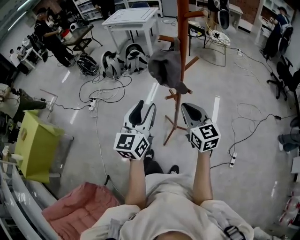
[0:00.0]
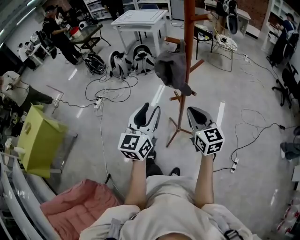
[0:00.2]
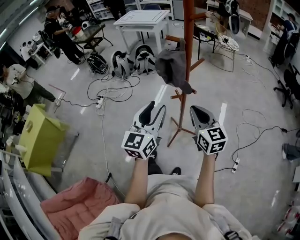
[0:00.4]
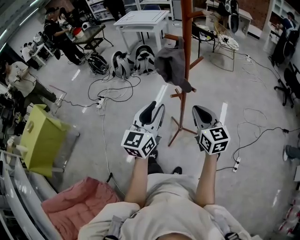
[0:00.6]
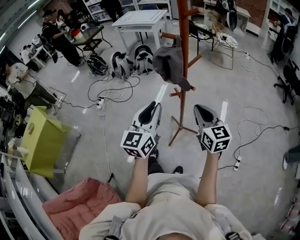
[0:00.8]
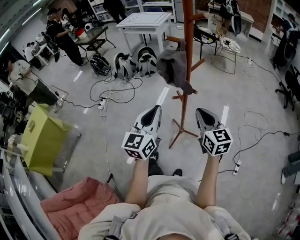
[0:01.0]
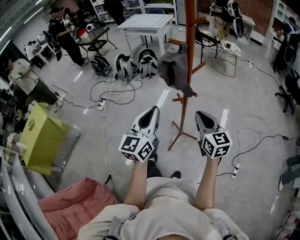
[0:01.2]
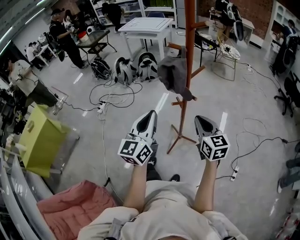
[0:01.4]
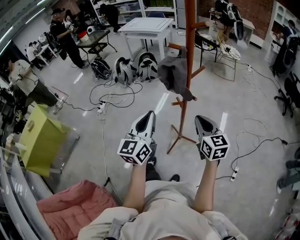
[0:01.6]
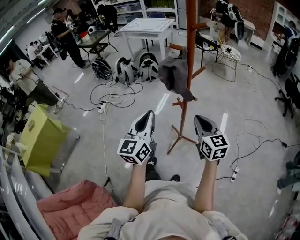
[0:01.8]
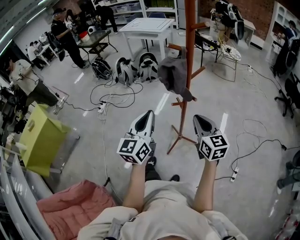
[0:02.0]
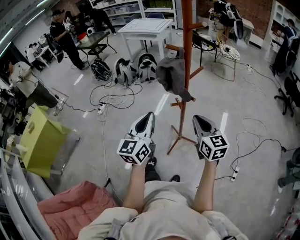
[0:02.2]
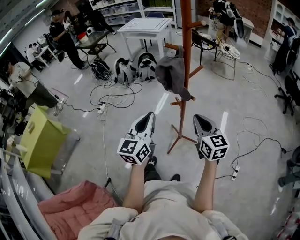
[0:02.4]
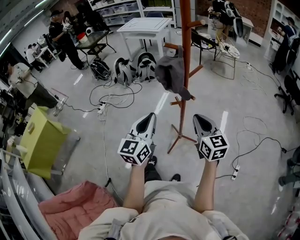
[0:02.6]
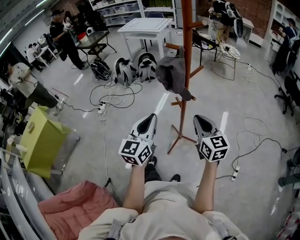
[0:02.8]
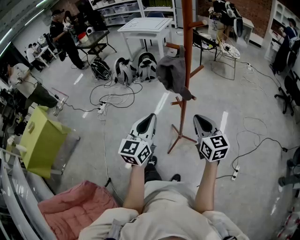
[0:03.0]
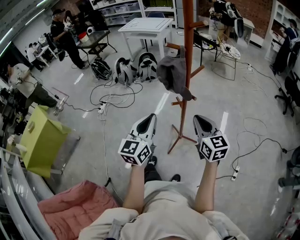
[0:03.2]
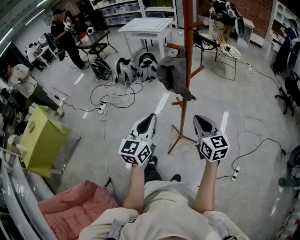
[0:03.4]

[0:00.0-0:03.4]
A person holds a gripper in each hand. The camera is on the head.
0:00.0 to 0:01.6: The left gripper closes its fingers.
0:01.6 to 0:03.4: The grippers move only a little.

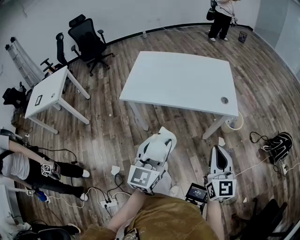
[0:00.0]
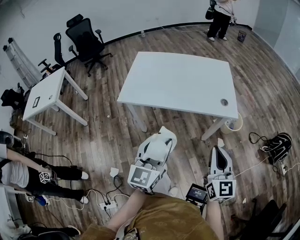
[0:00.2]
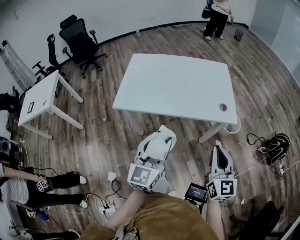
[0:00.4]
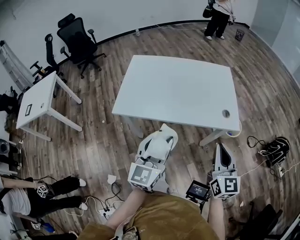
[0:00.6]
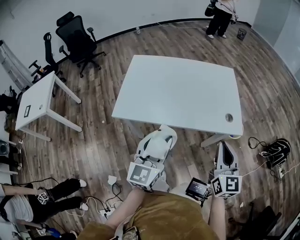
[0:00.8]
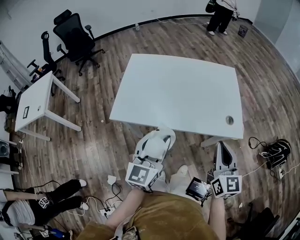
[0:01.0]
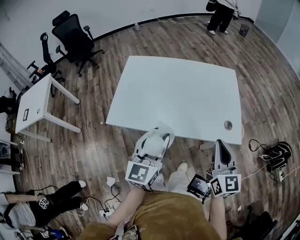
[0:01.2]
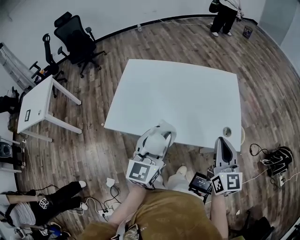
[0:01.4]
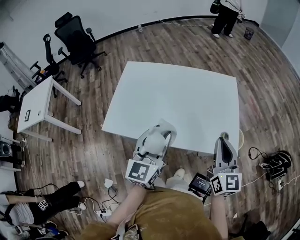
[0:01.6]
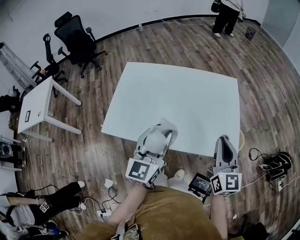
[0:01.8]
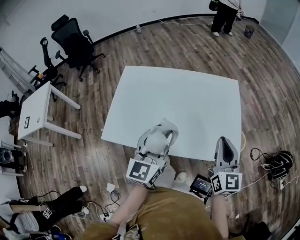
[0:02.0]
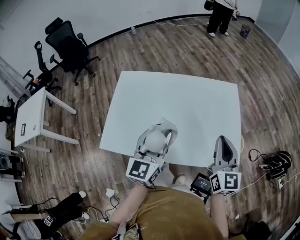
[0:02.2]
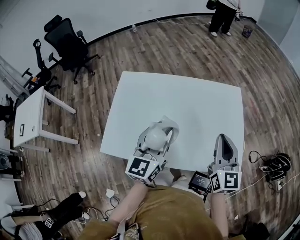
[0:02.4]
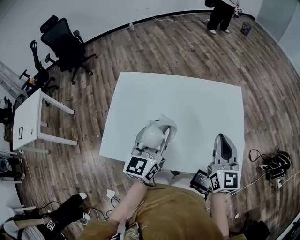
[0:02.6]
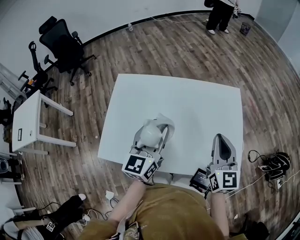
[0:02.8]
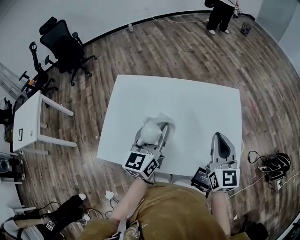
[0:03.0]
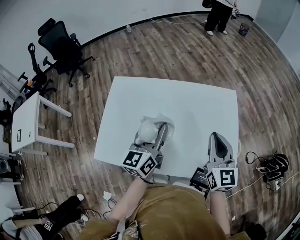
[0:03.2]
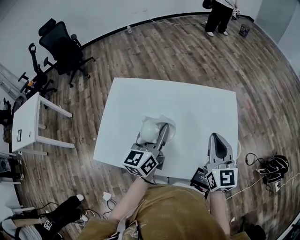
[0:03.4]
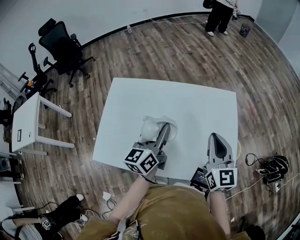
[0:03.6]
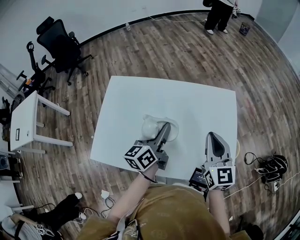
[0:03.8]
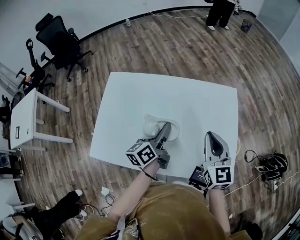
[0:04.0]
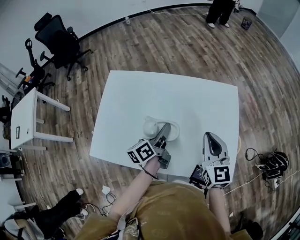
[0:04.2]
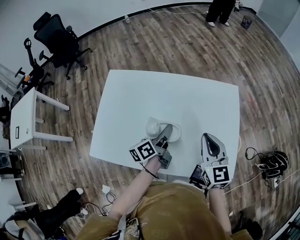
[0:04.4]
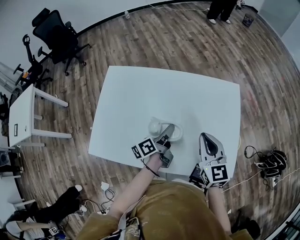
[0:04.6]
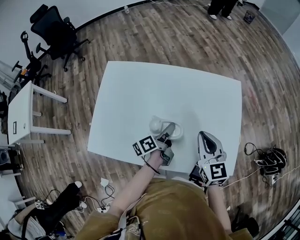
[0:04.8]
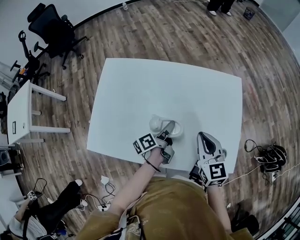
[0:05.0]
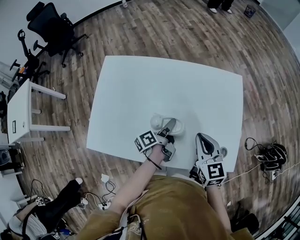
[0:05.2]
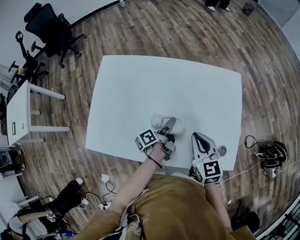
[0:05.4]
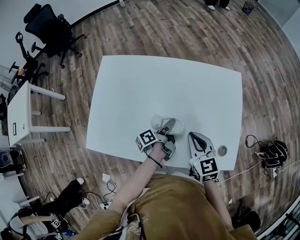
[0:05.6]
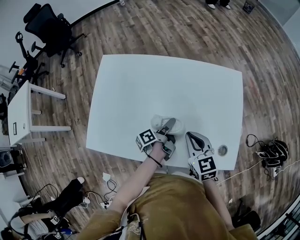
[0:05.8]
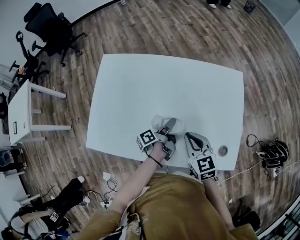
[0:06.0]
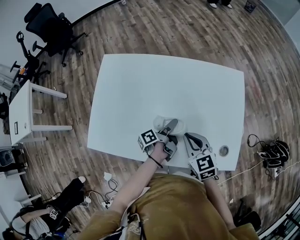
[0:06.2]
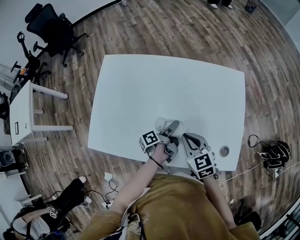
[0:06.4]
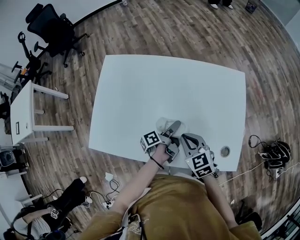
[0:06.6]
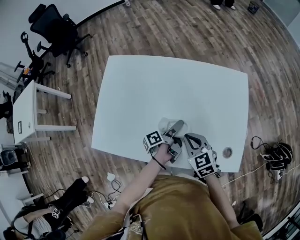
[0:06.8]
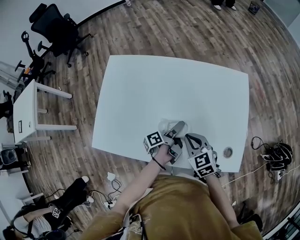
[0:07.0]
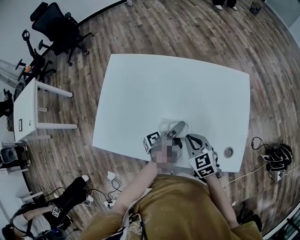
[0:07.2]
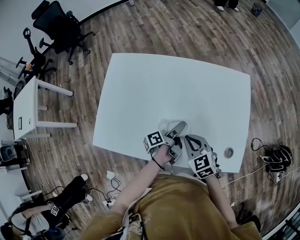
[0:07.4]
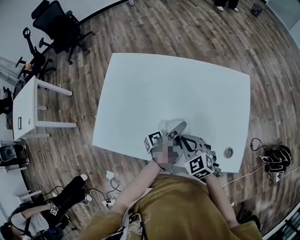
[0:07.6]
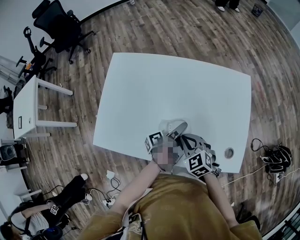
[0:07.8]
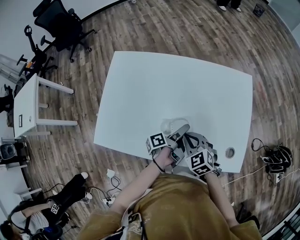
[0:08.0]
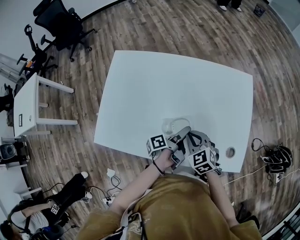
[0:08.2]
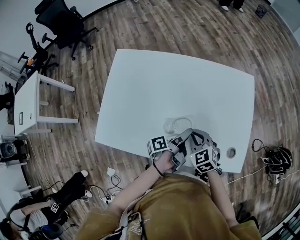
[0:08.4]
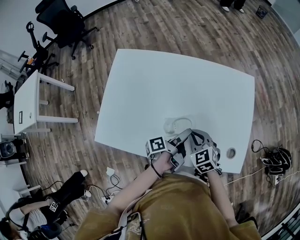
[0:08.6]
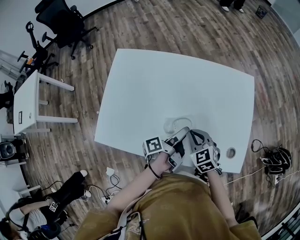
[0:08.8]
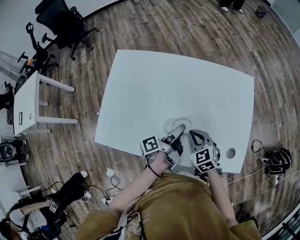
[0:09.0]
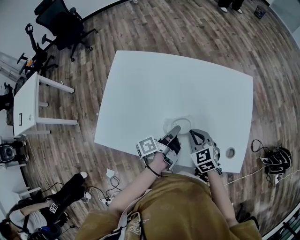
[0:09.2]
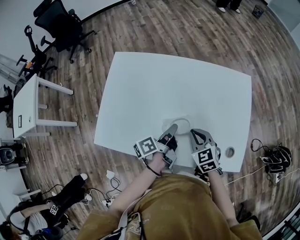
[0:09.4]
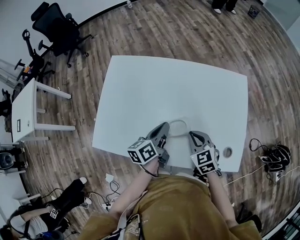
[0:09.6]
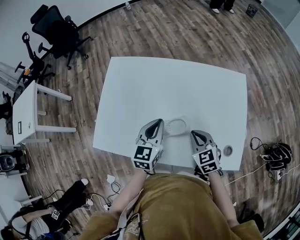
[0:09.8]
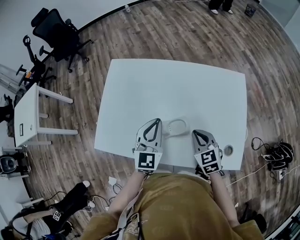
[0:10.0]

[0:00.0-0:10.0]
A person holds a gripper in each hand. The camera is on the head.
0:00.0 to 0:01.4: Both grippers travel together forward, some 30 cm.
0:01.4 to 0:02.8: Both grippers travel together forward, some 20 cm.
0:02.8 to 0:04.2: The right gripper shifts by approximately 5 cm. The left gripper shifts roughly 15 cm downward, and rotates around the line of its fingers by roughly 50 degrees, counterclockwise from behind.
0:04.2 to 0:05.8: The left gripper is displaced downward by approximately 15 cm, and rotates about 30 degrees. Meanwhile the right gripper moves downward and to the left, roughly 15 cm, and rotates some 20 degrees.
0:05.8 to 0:07.2: The left gripper opens up. The right gripper travels downward by about 5 cm.
0:07.2 to 0:08.6: The left gripper shifts by approximately 5 cm.
0:08.6 to 0:10.0: The right gripper shifts by some 5 cm. The left gripper goes about 15 cm upward and to the left, rotates around the line of its fingers by some 110 degrees, clockwise from behind, and closes its fingers.

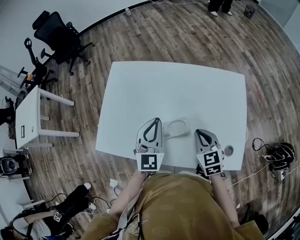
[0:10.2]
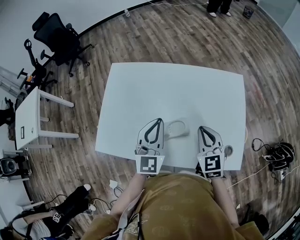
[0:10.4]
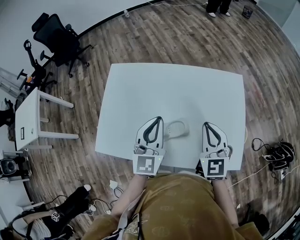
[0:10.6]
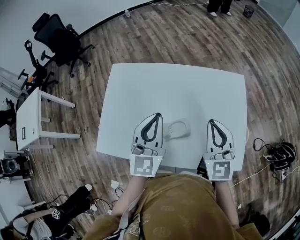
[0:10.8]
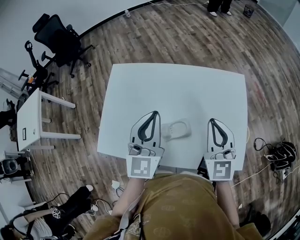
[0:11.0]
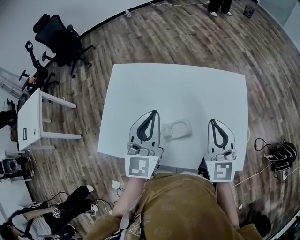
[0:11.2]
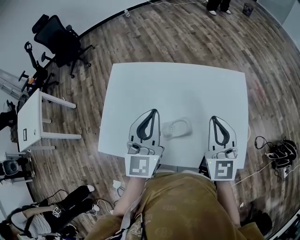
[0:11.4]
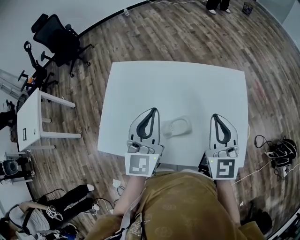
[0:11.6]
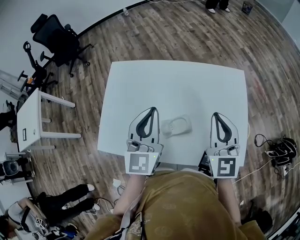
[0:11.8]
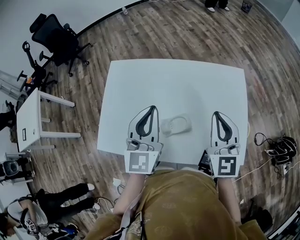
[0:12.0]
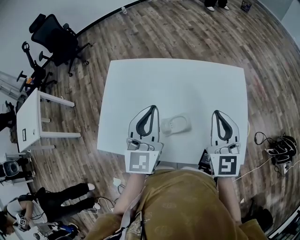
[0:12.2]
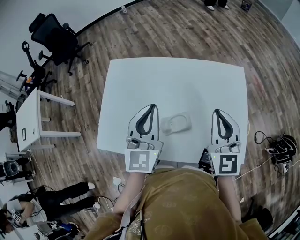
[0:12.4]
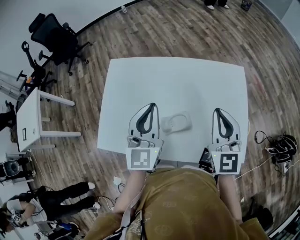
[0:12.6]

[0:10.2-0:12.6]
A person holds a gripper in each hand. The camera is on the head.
0:10.2 to 0:11.4: The left gripper is displaced upward by some 10 cm, while the right gripper travels upward by roughly 15 cm, and swivels roughly 30 degrees.
0:11.4 to 0:12.6: The grippers move only a little.

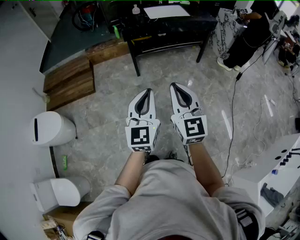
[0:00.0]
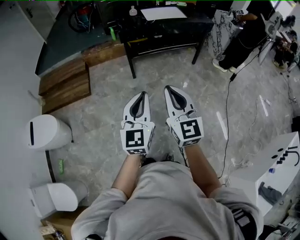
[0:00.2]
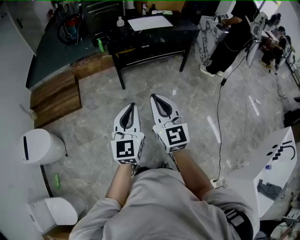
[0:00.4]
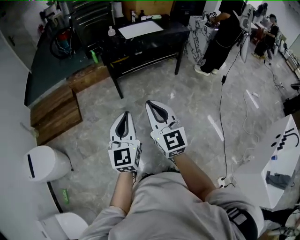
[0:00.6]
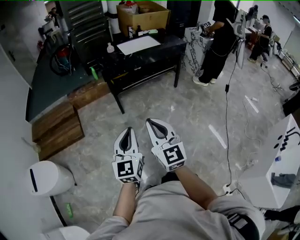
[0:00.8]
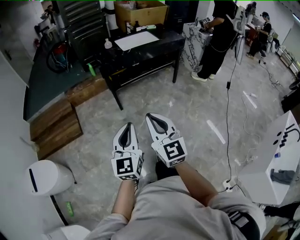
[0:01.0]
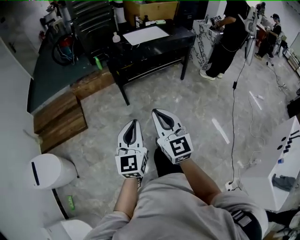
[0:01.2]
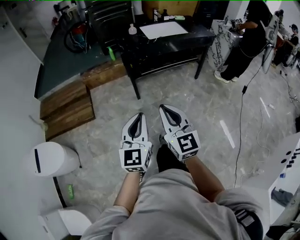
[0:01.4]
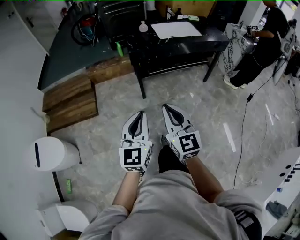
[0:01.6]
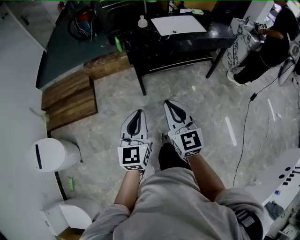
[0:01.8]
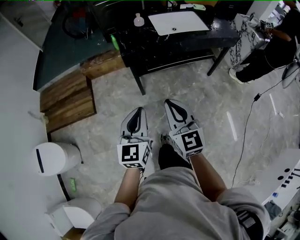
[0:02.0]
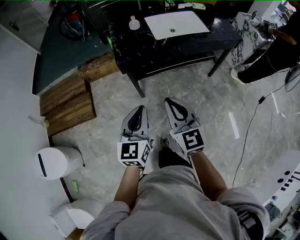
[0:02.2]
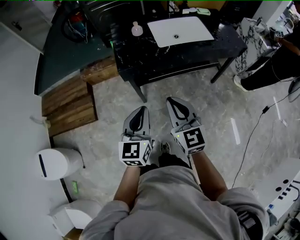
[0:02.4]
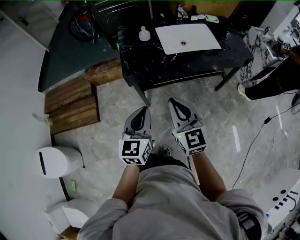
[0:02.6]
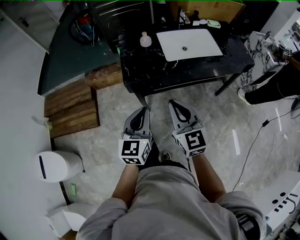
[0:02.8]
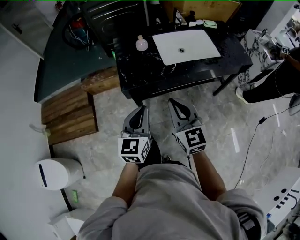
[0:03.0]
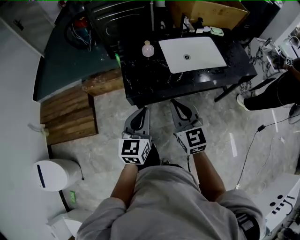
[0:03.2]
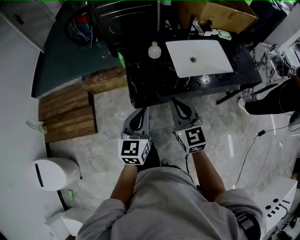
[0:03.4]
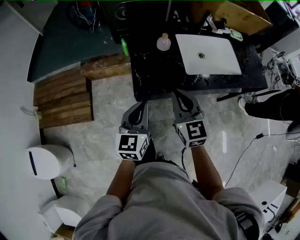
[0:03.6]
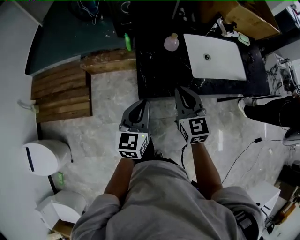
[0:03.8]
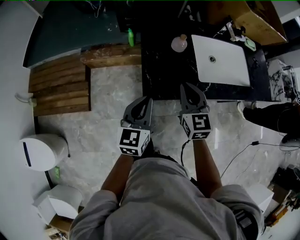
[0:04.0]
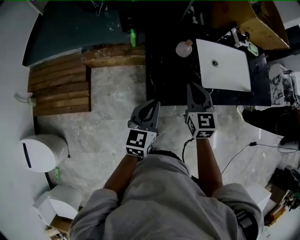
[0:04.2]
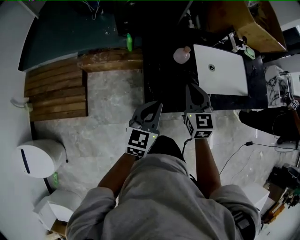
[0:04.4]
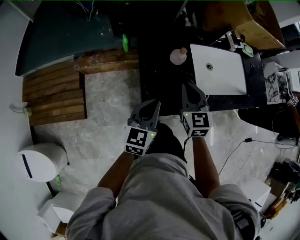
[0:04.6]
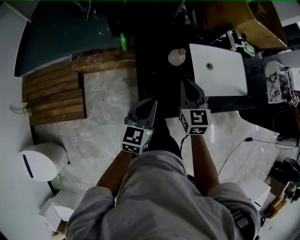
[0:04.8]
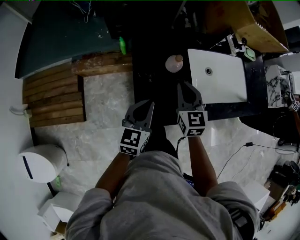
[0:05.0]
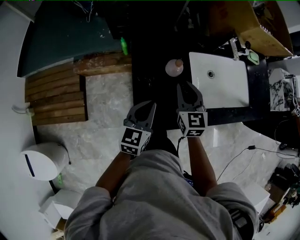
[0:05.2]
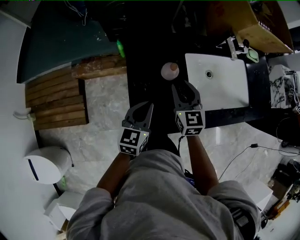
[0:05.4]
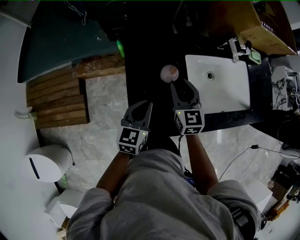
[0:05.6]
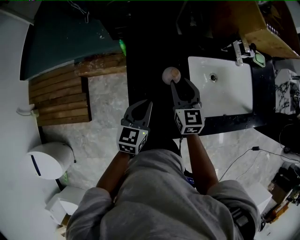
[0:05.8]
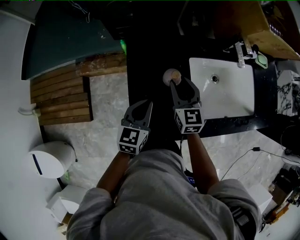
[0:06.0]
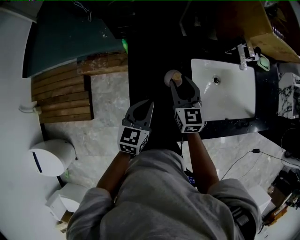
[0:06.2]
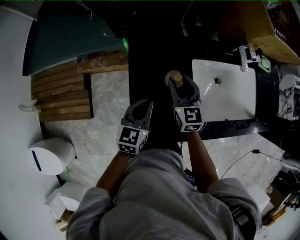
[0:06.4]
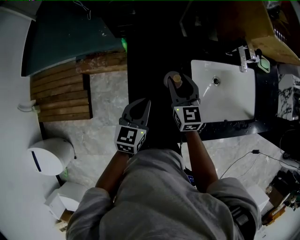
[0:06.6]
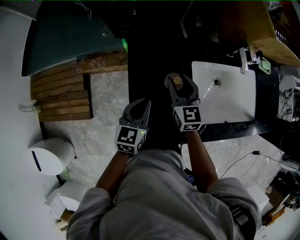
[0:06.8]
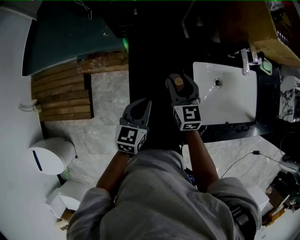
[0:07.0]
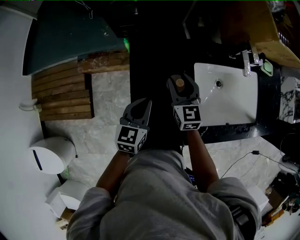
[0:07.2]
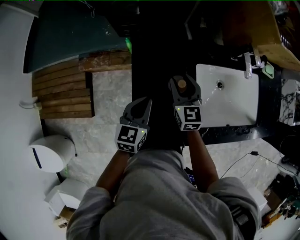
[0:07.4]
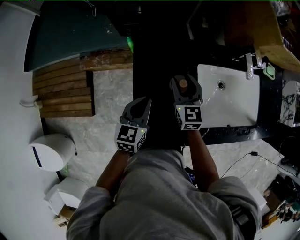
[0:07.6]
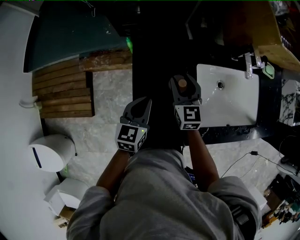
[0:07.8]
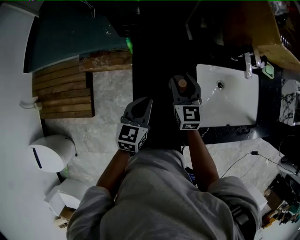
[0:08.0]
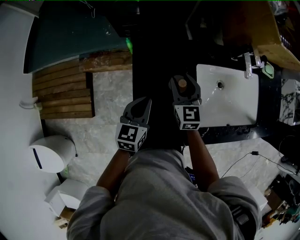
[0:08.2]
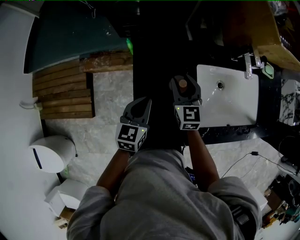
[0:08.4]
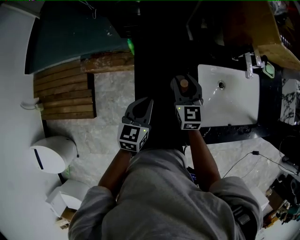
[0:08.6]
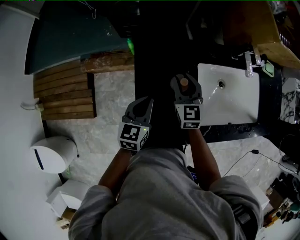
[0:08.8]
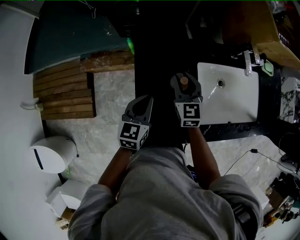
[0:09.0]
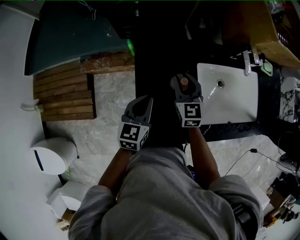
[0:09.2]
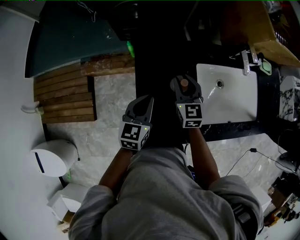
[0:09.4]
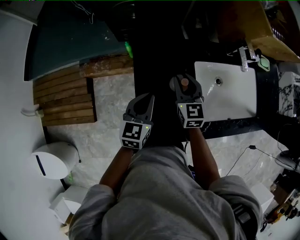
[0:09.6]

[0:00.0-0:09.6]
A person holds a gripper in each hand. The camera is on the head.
0:00.0 to 0:01.6: Both grippers move forward and to the left, about 20 cm.
0:01.6 to 0:03.2: Both grippers are carried forward, about 50 cm.
0:03.2 to 0:04.8: The right gripper is displaced forward by some 25 cm. Meanwhile the left gripper shifts approximately 25 cm forward, downward and to the left.
0:04.8 to 0:06.4: The grippers both shift forward by some 15 cm. The right gripper opens its fingers.
0:06.4 to 0:09.6: The grippers make only small movements.
